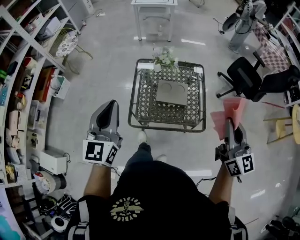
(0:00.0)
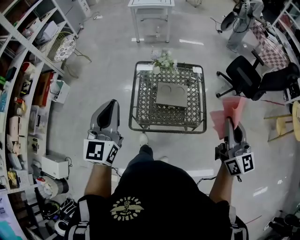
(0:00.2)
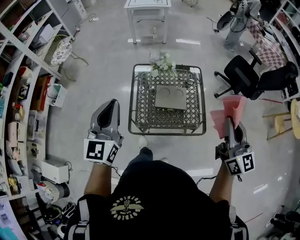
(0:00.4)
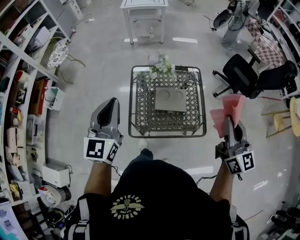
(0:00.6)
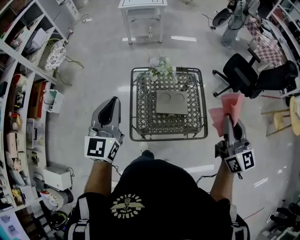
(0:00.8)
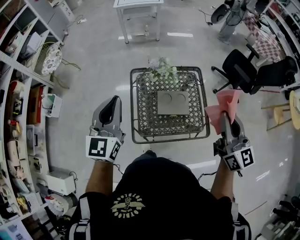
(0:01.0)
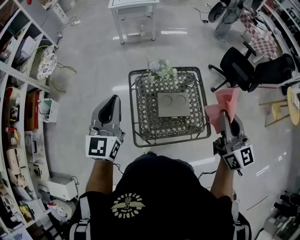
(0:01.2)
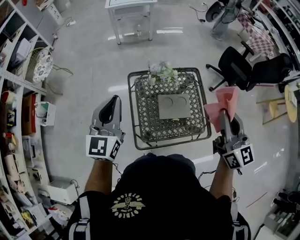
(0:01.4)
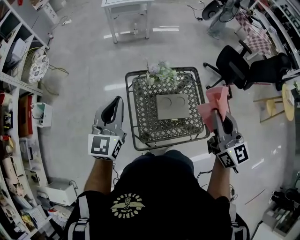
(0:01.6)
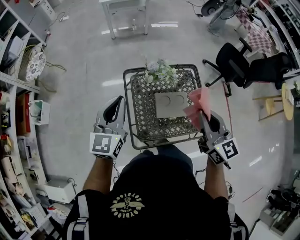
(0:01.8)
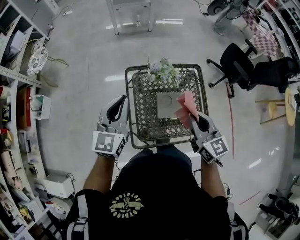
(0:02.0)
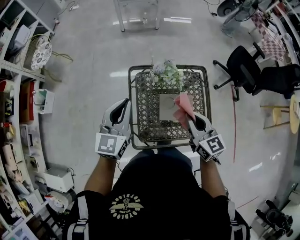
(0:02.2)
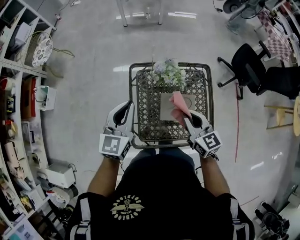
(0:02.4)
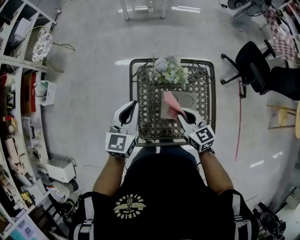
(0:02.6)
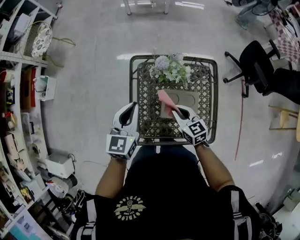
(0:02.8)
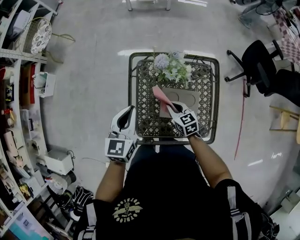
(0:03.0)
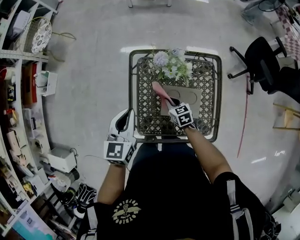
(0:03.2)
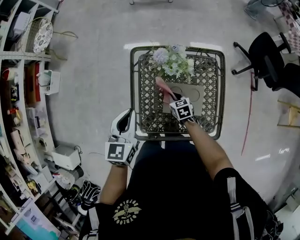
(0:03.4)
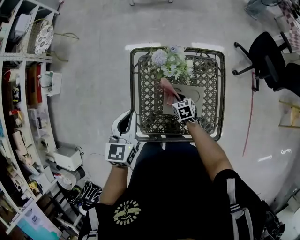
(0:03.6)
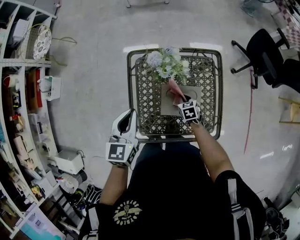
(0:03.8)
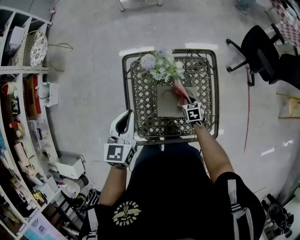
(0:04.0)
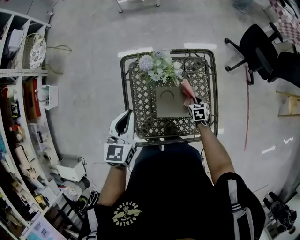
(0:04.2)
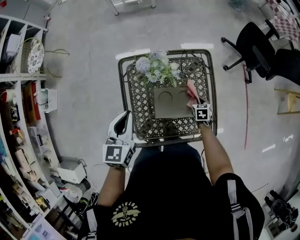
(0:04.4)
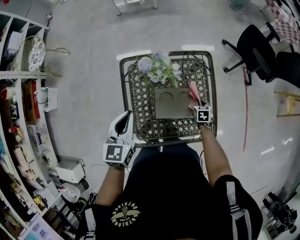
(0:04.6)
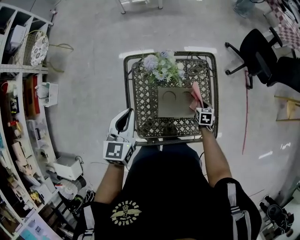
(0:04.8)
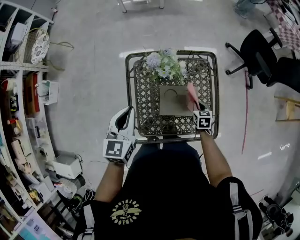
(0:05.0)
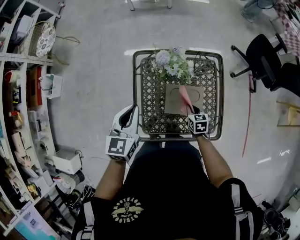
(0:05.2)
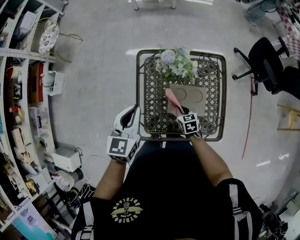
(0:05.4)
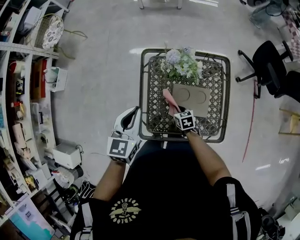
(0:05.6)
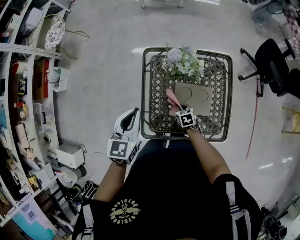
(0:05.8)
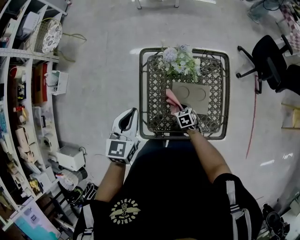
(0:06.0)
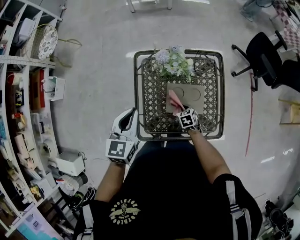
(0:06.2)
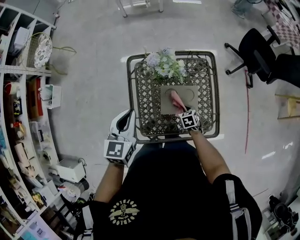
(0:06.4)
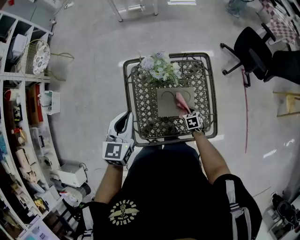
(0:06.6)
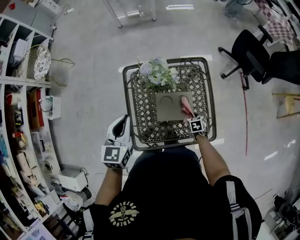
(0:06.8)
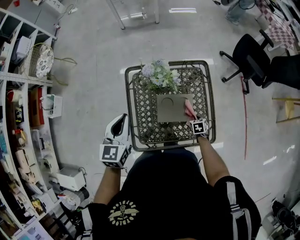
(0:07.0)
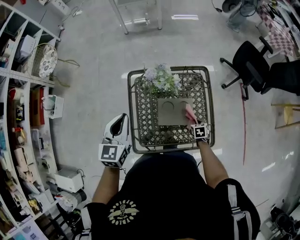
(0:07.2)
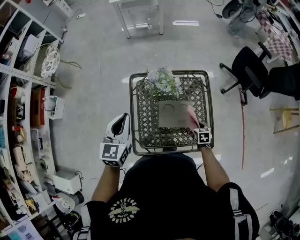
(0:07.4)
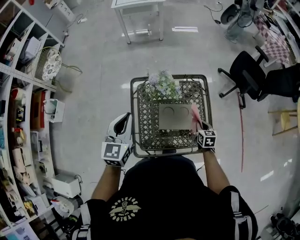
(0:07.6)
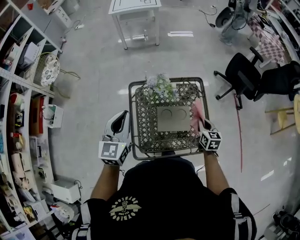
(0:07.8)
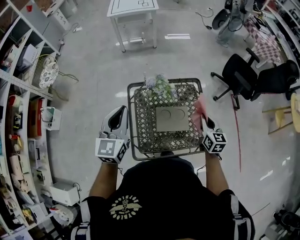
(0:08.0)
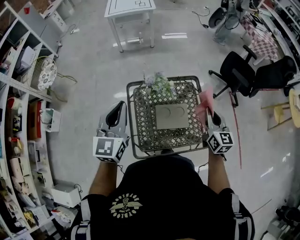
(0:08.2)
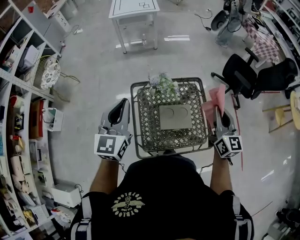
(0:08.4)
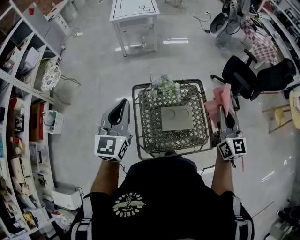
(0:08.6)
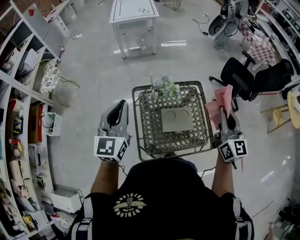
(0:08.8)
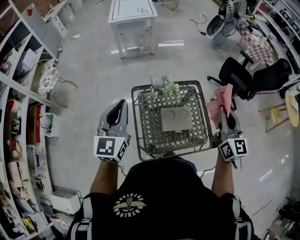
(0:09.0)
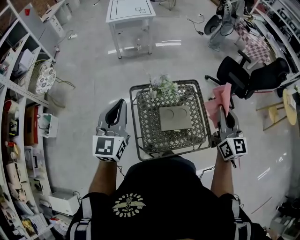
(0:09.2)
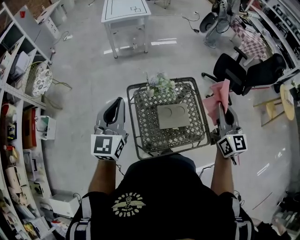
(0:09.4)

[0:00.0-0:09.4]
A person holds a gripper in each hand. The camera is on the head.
0:00.0 to 0:01.6: The right gripper is displaced forward and to the left by some 25 cm. The left gripper is displaced forward by about 25 cm.
0:01.6 to 0:03.2: The left gripper is displaced downward by approximately 20 cm, and turns by some 30 degrees. Meanwhile the right gripper goes some 50 cm downward, and angles its fingers downward, by approximately 40 degrees.
0:03.2 to 0:04.8: The right gripper changes place by some 25 cm, and changes its angle by about 30 degrees.
0:04.8 to 0:06.2: The right gripper shifts some 20 cm to the left, and swivels approximately 20 degrees. The left gripper moves about 5 cm.
0:06.2 to 0:07.8: The left gripper heads upward, covering approximately 15 cm. The right gripper moves upward and to the right, roughly 30 cm, and swivels roughly 40 degrees.
0:07.8 to 0:09.4: The right gripper is displaced upward by about 30 cm, and points its fingers approximately 40 degrees further upward. The left gripper heads upward and to the left, covering approximately 10 cm.

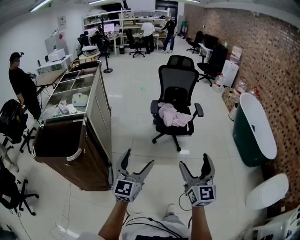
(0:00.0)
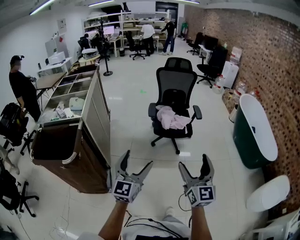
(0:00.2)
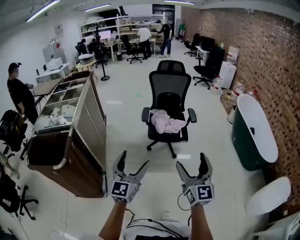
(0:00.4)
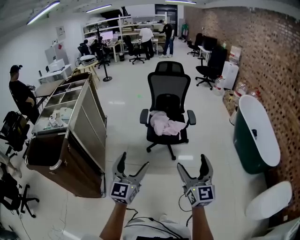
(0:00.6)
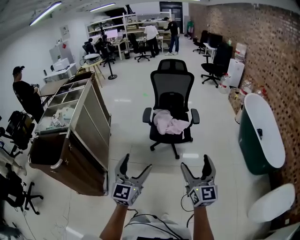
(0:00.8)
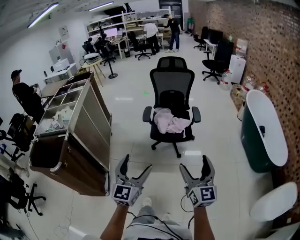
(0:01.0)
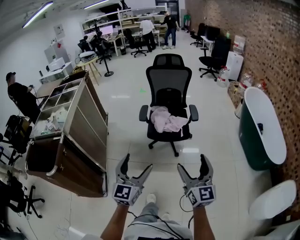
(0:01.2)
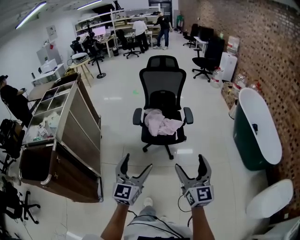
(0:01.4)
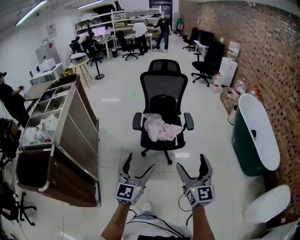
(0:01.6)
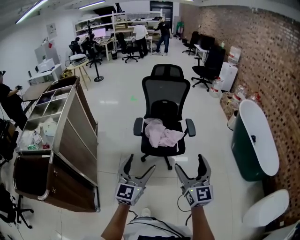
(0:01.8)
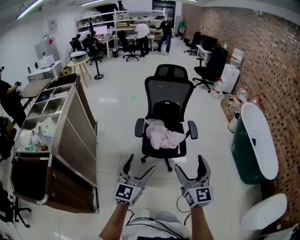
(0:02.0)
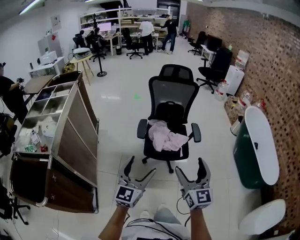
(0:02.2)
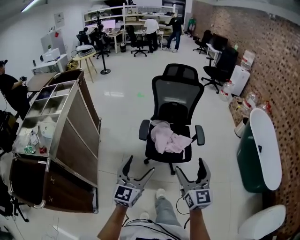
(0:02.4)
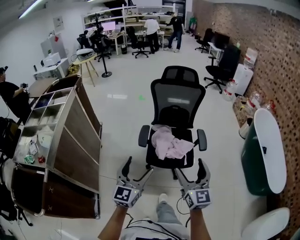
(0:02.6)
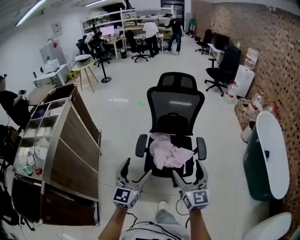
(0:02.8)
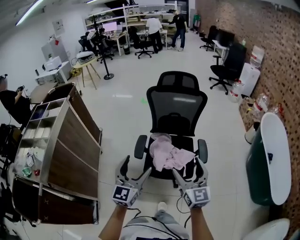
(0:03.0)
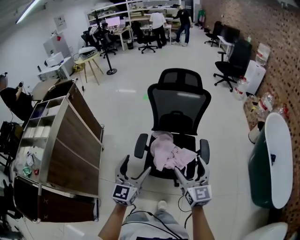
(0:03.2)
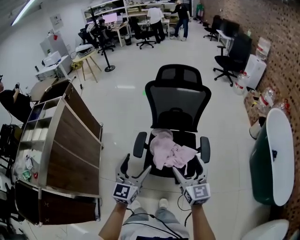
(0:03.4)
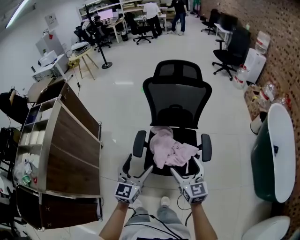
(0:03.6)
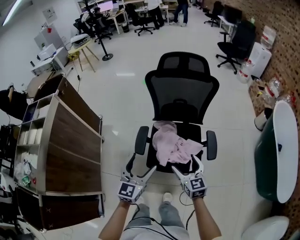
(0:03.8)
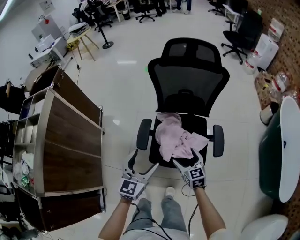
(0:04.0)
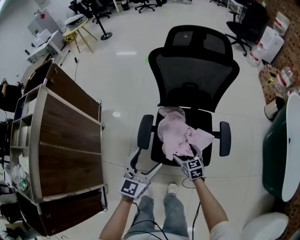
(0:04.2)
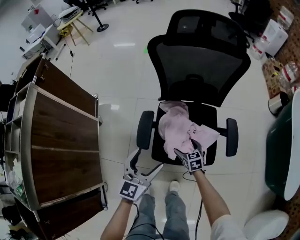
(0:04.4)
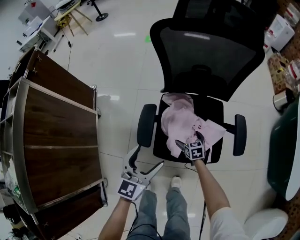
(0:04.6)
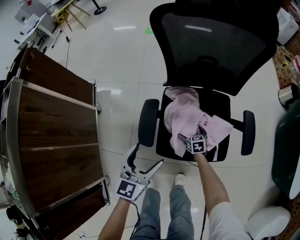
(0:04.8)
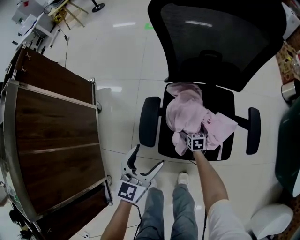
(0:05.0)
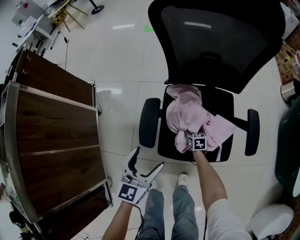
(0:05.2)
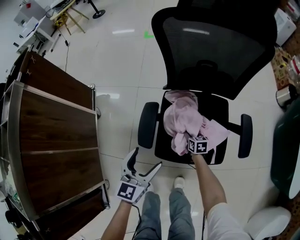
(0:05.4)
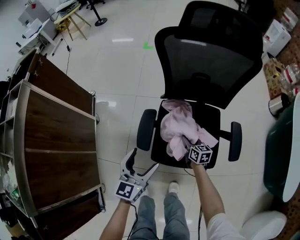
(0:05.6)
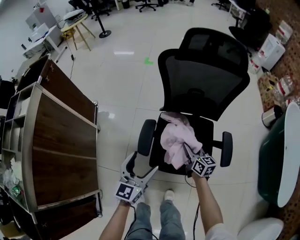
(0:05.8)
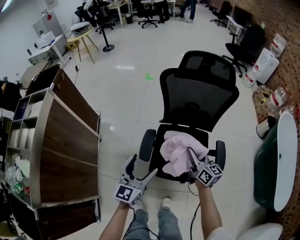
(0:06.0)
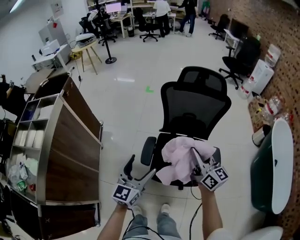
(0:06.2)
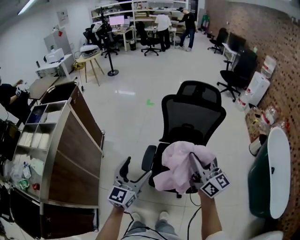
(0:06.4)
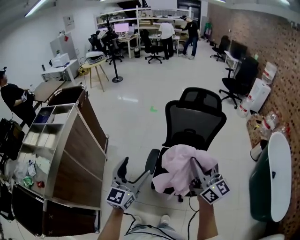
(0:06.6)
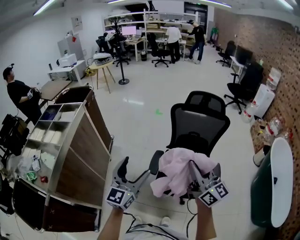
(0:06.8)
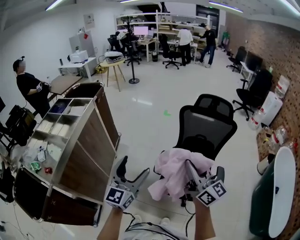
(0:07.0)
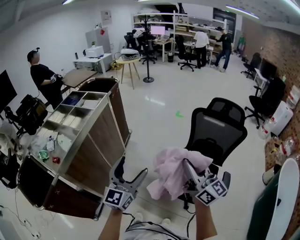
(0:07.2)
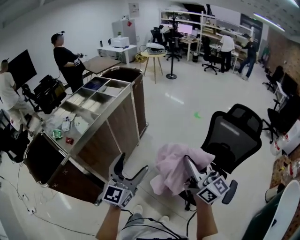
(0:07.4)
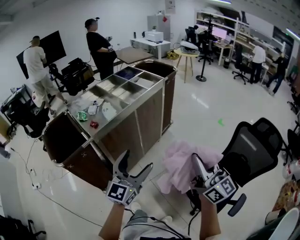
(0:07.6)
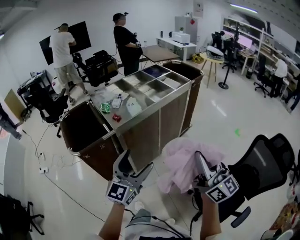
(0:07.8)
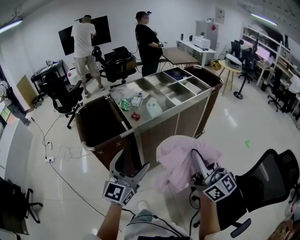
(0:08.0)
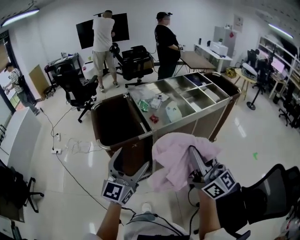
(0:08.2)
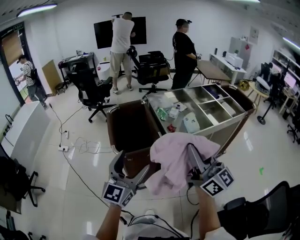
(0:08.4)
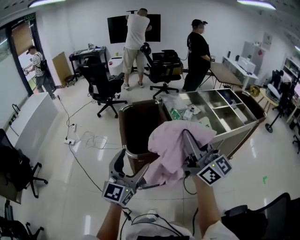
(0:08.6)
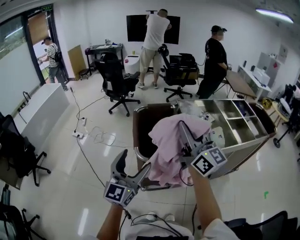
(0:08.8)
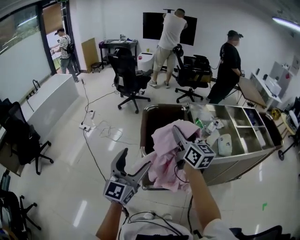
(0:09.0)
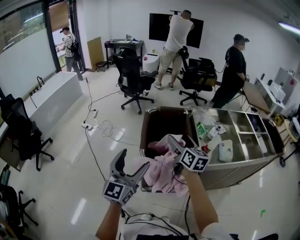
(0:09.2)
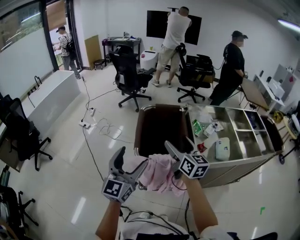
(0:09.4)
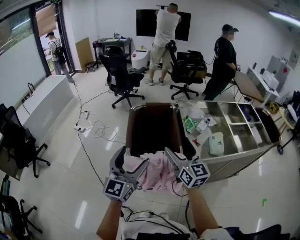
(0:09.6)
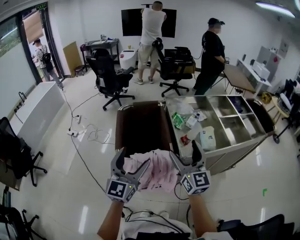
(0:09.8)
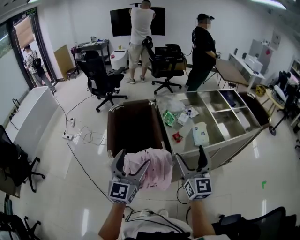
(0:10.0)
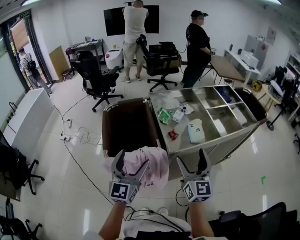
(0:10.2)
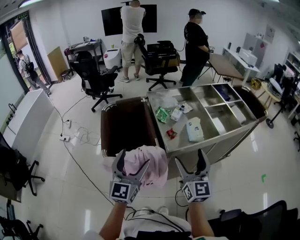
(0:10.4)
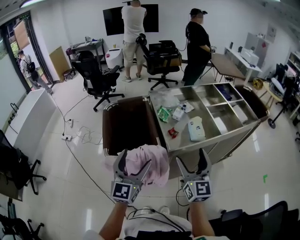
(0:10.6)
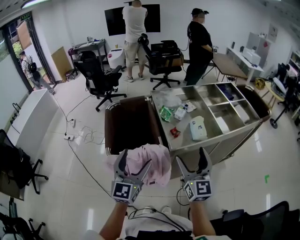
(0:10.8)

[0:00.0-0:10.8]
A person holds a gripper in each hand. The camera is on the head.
0:00.0 to 0:01.6: Both grippers move forward and to the right, roughly 30 cm.
0:01.6 to 0:03.0: Both grippers move forward, about 35 cm.
0:03.0 to 0:04.6: The left gripper goes roughly 35 cm downward and forward, while the right gripper heads downward and forward, covering some 70 cm, and angles its fingers downward, by about 50 degrees.
0:04.6 to 0:06.2: The left gripper travels upward by approximately 20 cm; the right gripper is displaced upward by about 60 cm, angles its fingers upward, by roughly 60 degrees, and closes.
0:06.2 to 0:07.8: Both grippers are carried about 50 cm. The left gripper changes its angle by some 60 degrees. The right gripper turns by some 60 degrees.
0:07.8 to 0:09.2: The two grippers travel together, approximately 50 cm. The right gripper turns by about 50 degrees, and opens. The left gripper turns by about 40 degrees.
0:09.2 to 0:10.8: The right gripper heads to the right and backward, covering about 25 cm, and changes its angle by approximately 40 degrees, while the left gripper is displaced to the right by approximately 15 cm.

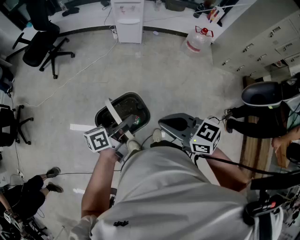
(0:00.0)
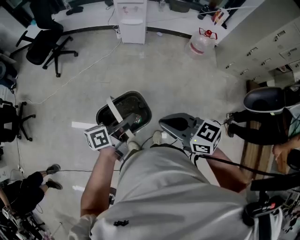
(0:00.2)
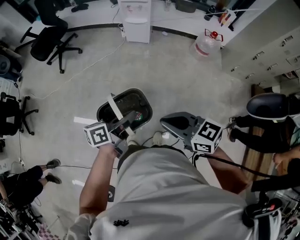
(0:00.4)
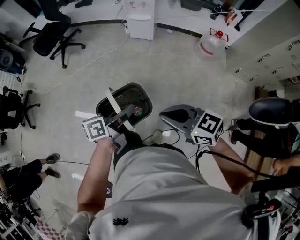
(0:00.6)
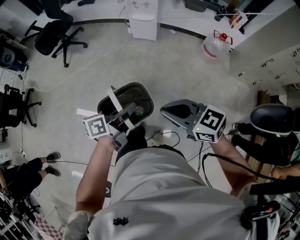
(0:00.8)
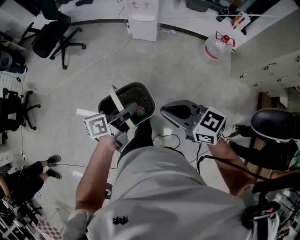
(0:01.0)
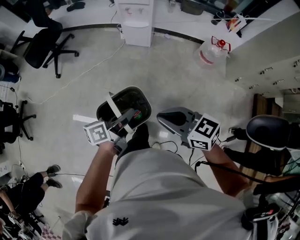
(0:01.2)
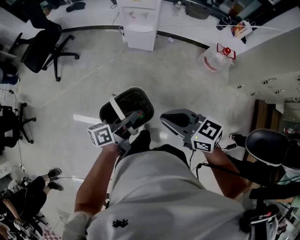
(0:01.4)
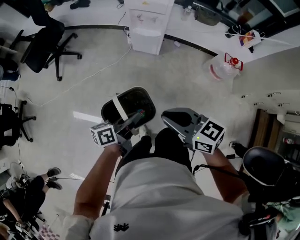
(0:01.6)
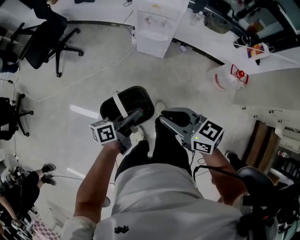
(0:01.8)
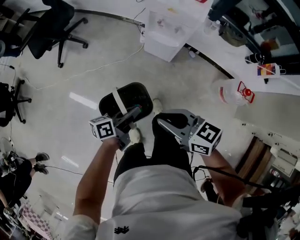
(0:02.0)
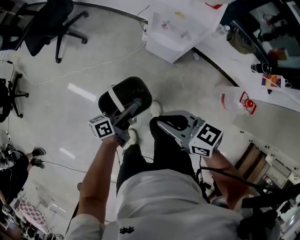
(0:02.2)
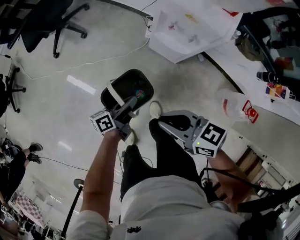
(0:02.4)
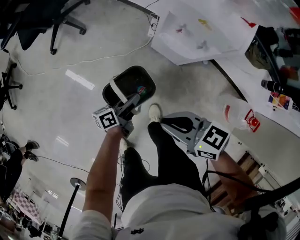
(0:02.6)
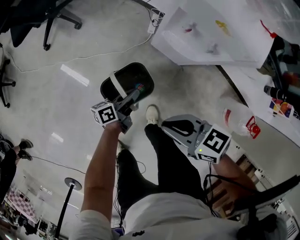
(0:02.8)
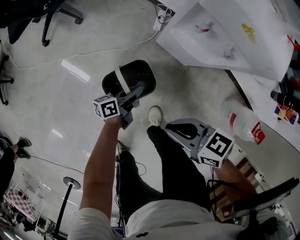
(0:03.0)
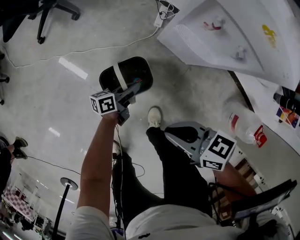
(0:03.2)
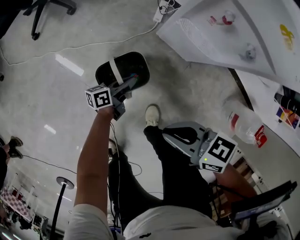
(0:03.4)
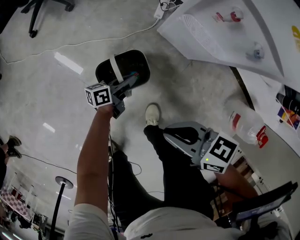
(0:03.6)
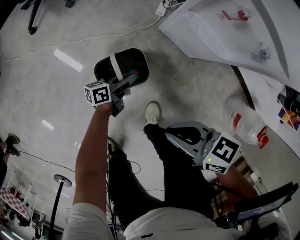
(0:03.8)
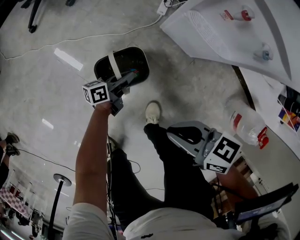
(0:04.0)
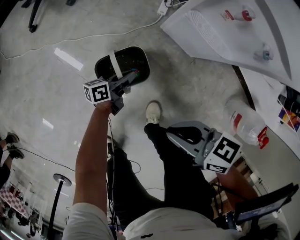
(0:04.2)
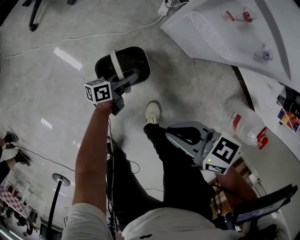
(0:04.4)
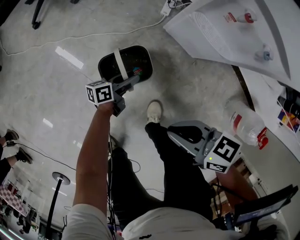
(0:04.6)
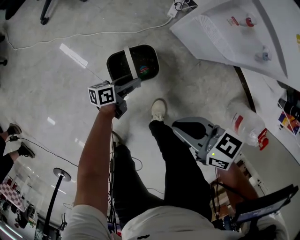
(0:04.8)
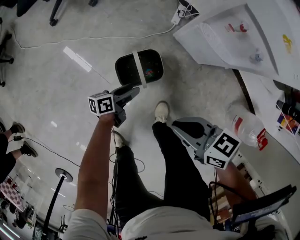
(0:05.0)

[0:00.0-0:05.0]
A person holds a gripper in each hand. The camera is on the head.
0:00.0 to 0:01.6: The two grippers go roughly 40 cm forward.
0:01.6 to 0:03.4: Both grippers travel together downward, roughly 40 cm. The left gripper rotates some 20 degrees. Meanwhile the right gripper swivels roughly 40 degrees.
0:03.4 to 0:05.0: The left gripper shifts by about 10 cm, and opens.
